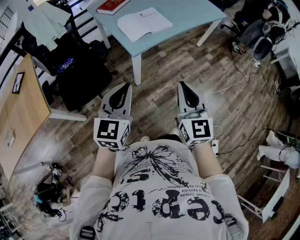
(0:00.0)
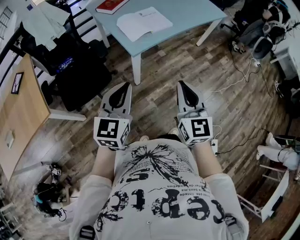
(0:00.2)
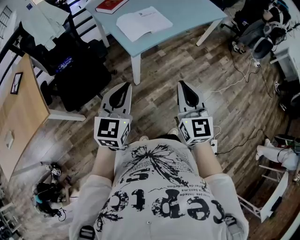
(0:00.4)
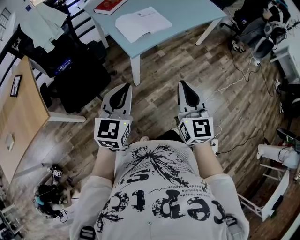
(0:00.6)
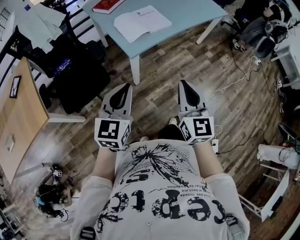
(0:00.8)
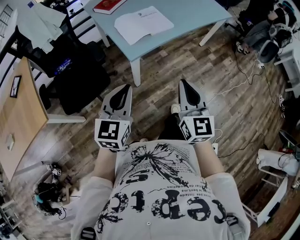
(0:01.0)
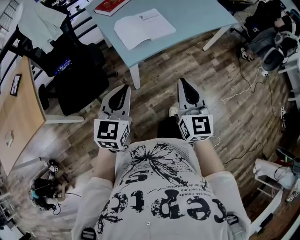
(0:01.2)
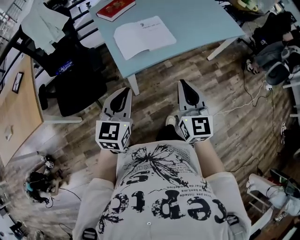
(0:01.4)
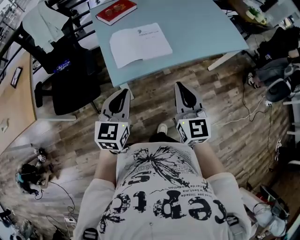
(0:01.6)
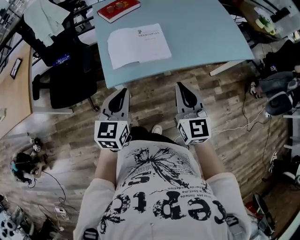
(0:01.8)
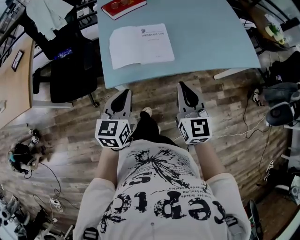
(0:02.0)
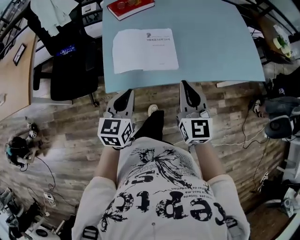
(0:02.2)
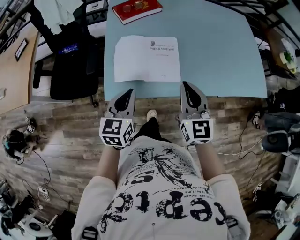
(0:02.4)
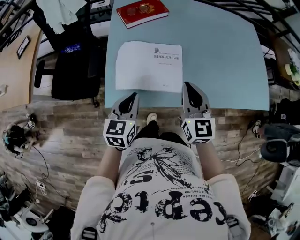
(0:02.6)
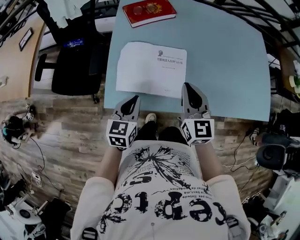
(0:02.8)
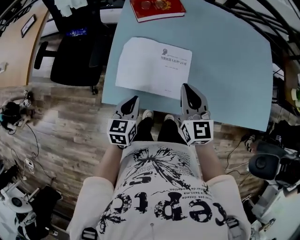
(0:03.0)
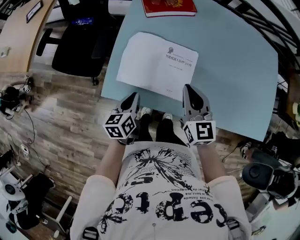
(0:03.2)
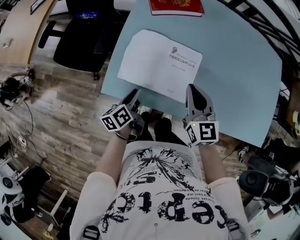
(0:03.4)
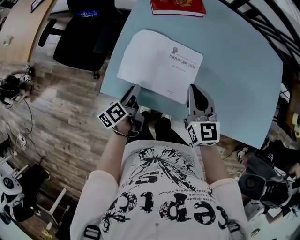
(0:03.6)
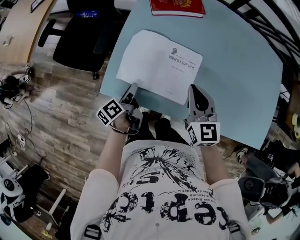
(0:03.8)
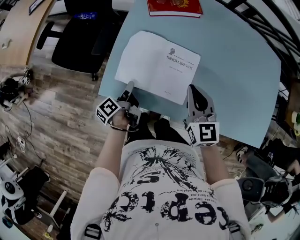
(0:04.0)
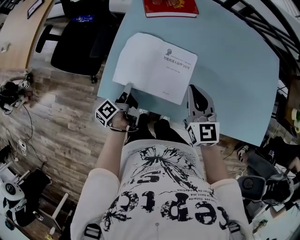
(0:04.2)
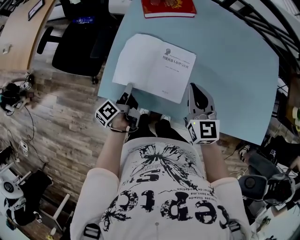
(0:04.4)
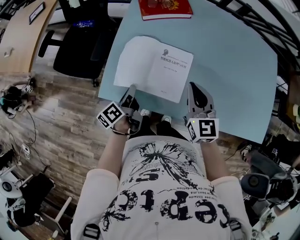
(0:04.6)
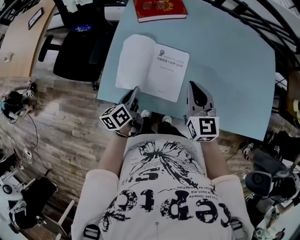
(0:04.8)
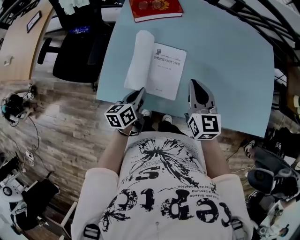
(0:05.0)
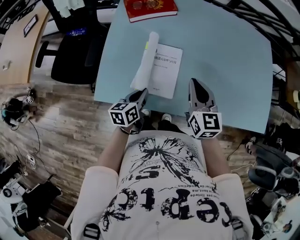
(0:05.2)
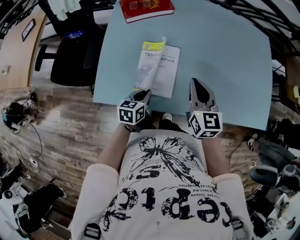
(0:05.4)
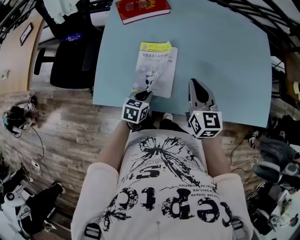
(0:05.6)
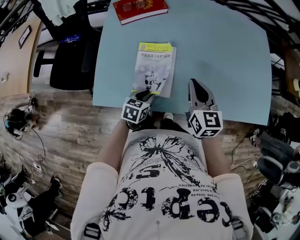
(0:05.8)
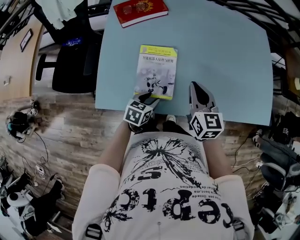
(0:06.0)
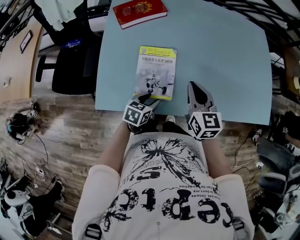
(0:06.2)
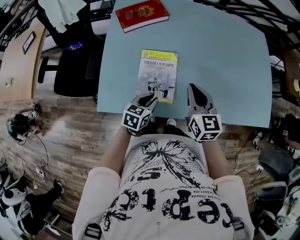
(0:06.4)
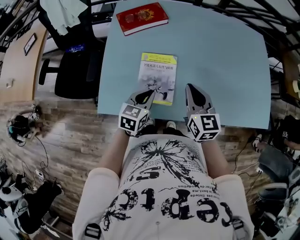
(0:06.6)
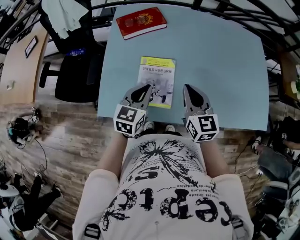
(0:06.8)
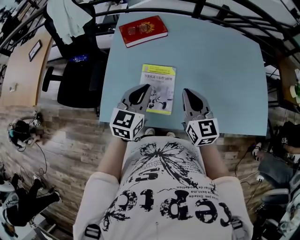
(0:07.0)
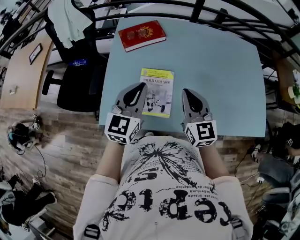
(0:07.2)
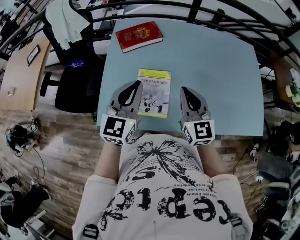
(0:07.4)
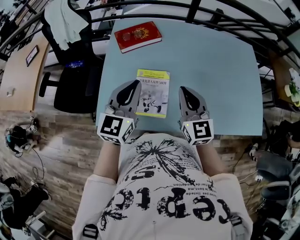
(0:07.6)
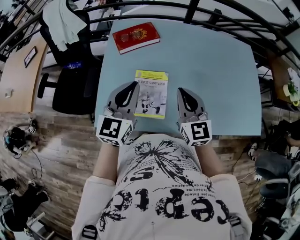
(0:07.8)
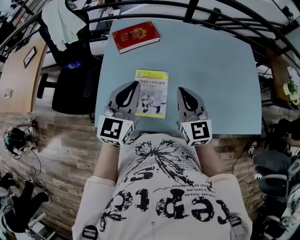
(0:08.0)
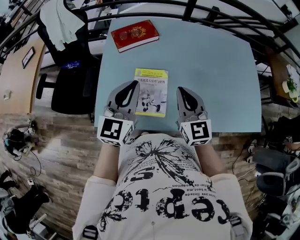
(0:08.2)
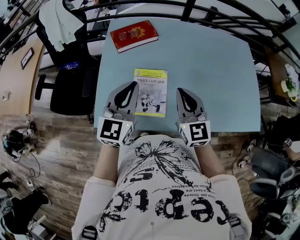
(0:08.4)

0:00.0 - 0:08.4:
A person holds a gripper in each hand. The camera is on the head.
0:00.0 - 0:01.4: The grippers both shift forward and to the right by approximately 20 cm.
0:01.4 - 0:02.8: The right gripper ends up some 40 cm from where it was, and rotates some 30 degrees. The left gripper ends up roughly 35 cm from where it was, and swivels approximately 30 degrees.
0:02.8 - 0:04.2: The left gripper shifts roughly 10 cm downward, twists approximately 80 degrees counterclockwise, seen from behind, and opens, then closes once more; the right gripper changes place by roughly 5 cm.
0:04.2 - 0:05.6: The right gripper shifts roughly 10 cm to the right. Meanwhile the left gripper moves to the right, about 15 cm, and rotates around the line of its fingers by approximately 70 degrees, clockwise from behind.
0:05.6 - 0:07.0: The left gripper moves upward, about 20 cm, swivels about 30 degrees, and opens, then closes once more; the right gripper heads upward, covering approximately 5 cm.
0:07.0 - 0:08.4: The left gripper is displaced upward by roughly 5 cm.

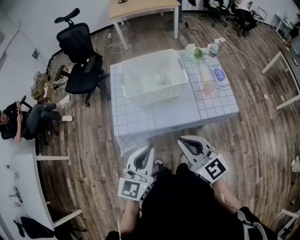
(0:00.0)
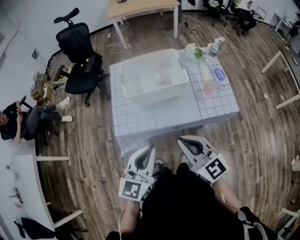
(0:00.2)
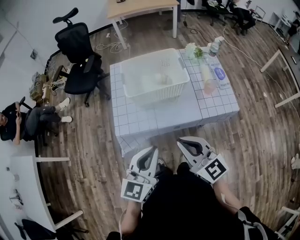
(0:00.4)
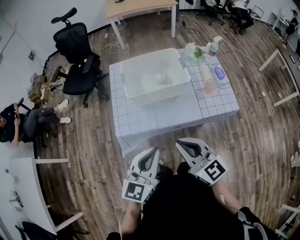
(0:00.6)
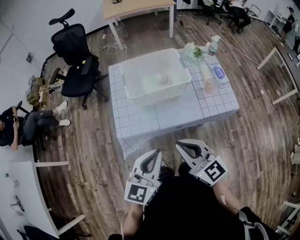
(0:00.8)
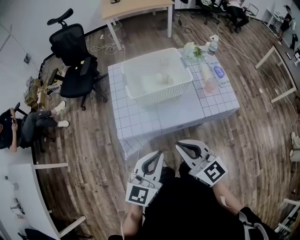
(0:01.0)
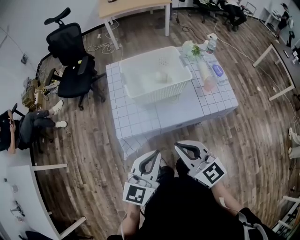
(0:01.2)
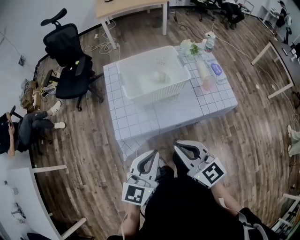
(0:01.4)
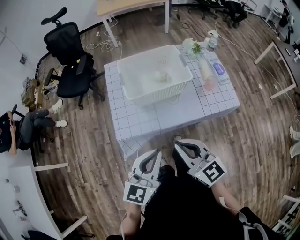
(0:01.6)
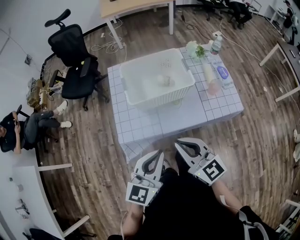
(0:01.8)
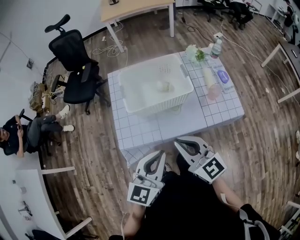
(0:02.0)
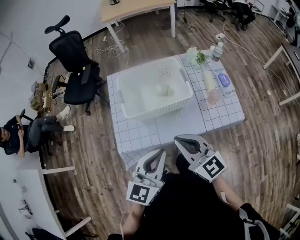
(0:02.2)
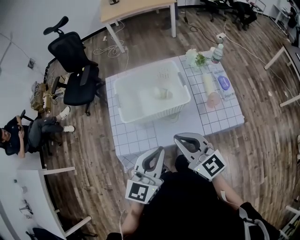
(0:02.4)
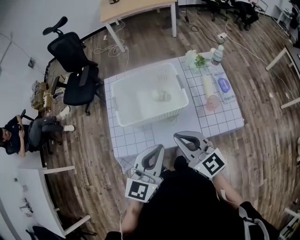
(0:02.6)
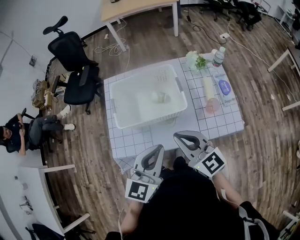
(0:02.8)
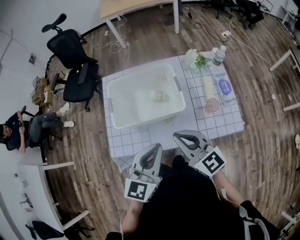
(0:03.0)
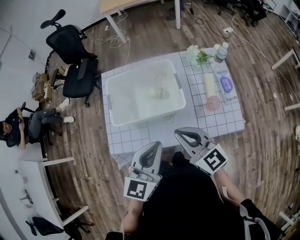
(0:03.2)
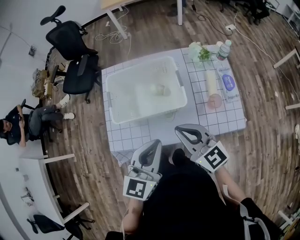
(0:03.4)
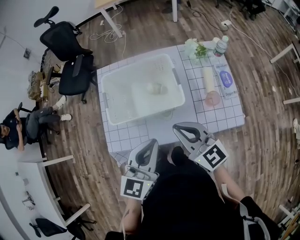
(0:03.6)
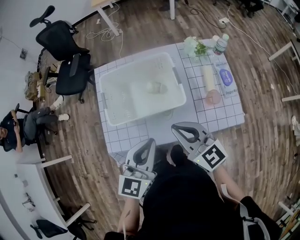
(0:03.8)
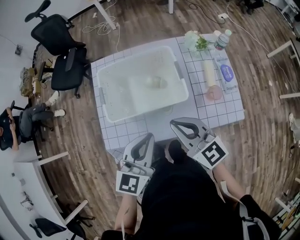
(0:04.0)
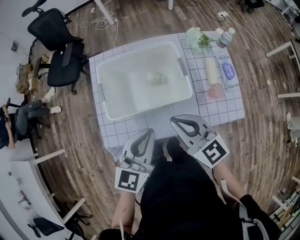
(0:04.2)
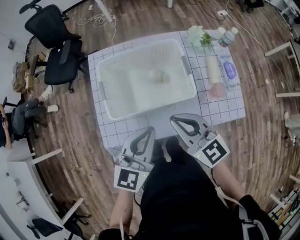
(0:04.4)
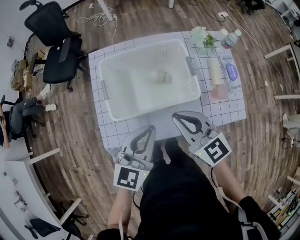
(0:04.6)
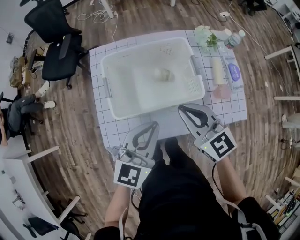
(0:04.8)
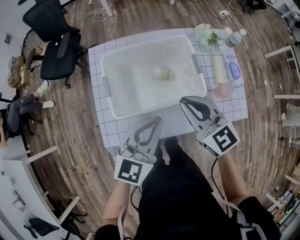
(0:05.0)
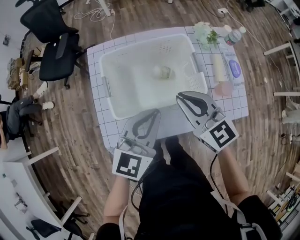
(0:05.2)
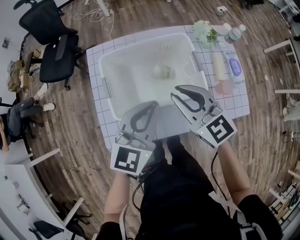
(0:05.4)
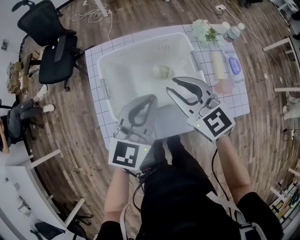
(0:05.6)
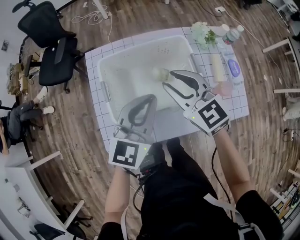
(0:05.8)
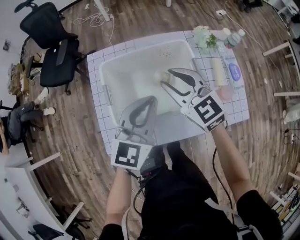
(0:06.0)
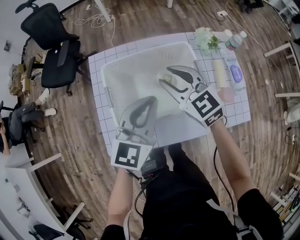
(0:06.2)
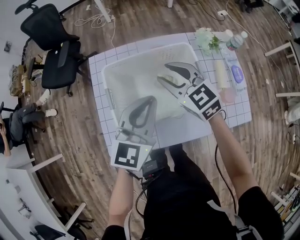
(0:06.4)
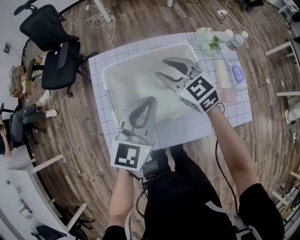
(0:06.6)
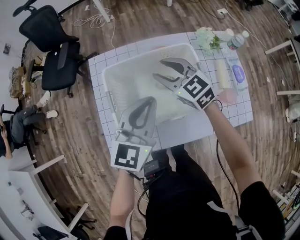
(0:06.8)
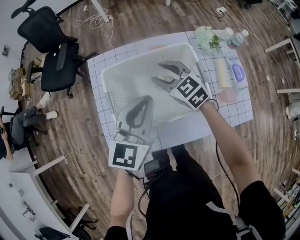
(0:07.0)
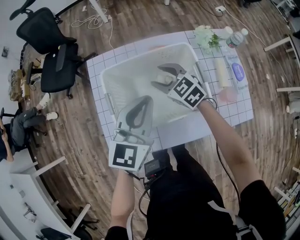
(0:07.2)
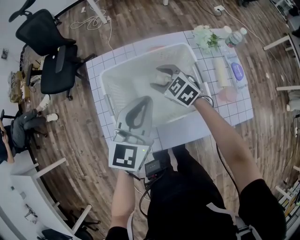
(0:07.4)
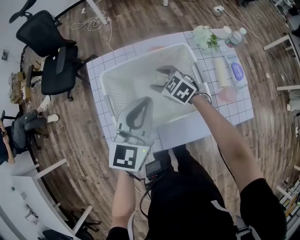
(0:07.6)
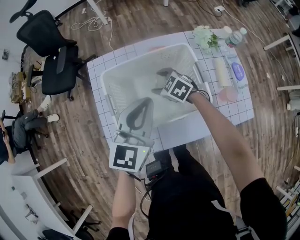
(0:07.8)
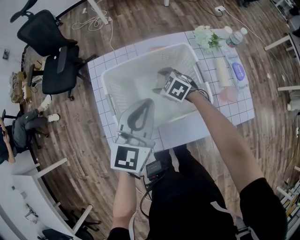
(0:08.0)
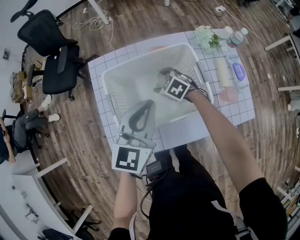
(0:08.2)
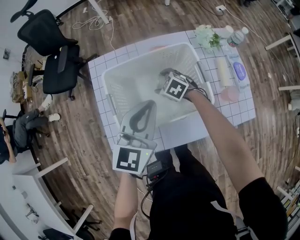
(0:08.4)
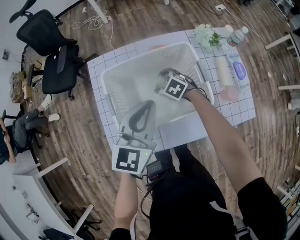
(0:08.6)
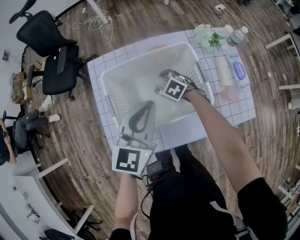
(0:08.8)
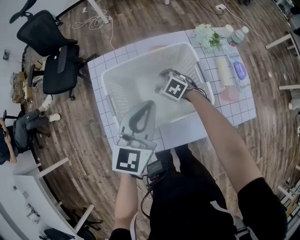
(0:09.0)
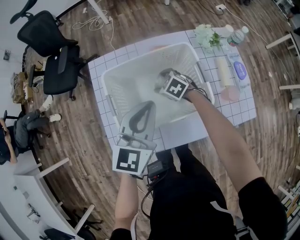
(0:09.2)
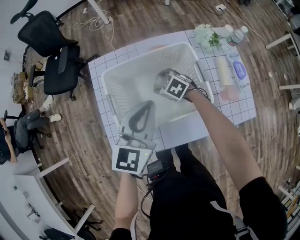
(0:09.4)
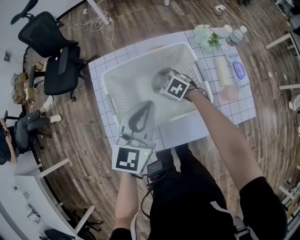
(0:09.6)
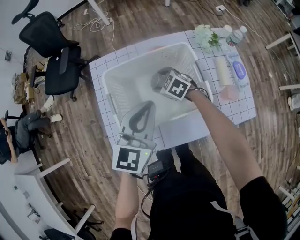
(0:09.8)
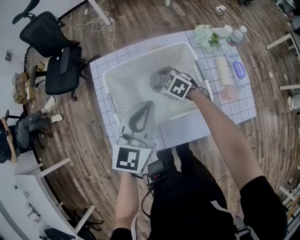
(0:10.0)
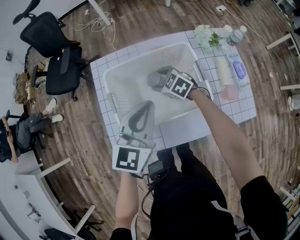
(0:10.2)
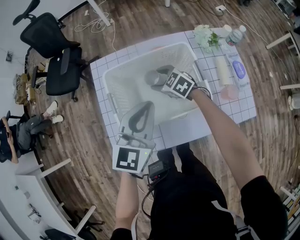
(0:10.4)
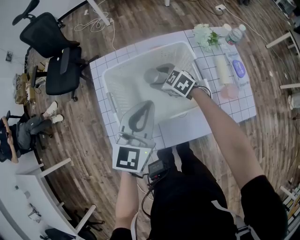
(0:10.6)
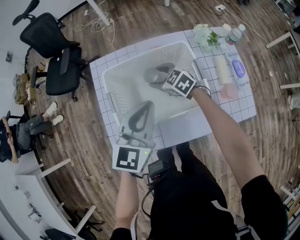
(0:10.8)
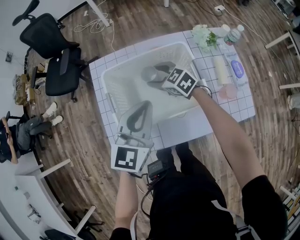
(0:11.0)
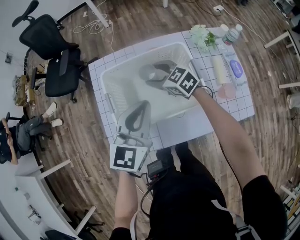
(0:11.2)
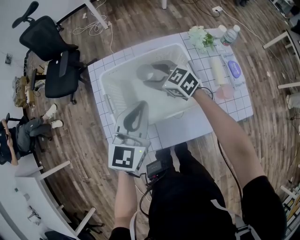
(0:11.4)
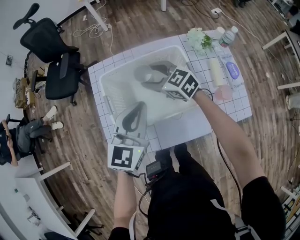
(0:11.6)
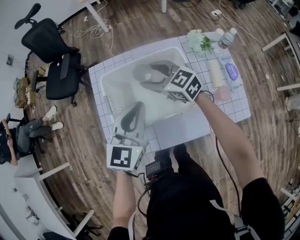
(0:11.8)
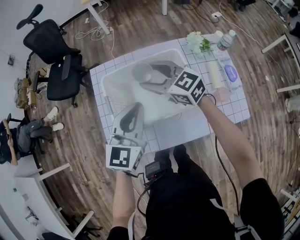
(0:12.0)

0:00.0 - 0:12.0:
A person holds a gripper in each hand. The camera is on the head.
0:00.0 - 0:01.6: The right gripper heads to the left, covering approximately 5 cm.
0:01.6 - 0:03.0: The two grippers go approximately 20 cm forward and to the right.
0:03.0 - 0:04.4: The right gripper shifts roughly 5 cm forward. The left gripper is displaced forward and downward by roughly 10 cm.
0:04.4 - 0:06.0: Both grippers travel together forward, some 15 cm. The right gripper opens its fingers.
0:06.0 - 0:07.6: The right gripper travels downward and forward by some 20 cm, rotates about 20 degrees, and opens up.
0:07.6 - 0:09.0: The right gripper goes some 5 cm downward.
0:09.0 - 0:10.4: The right gripper moves upward, roughly 5 cm.
0:10.4 - 0:12.0: The right gripper goes some 20 cm upward, and rotates some 30 degrees.

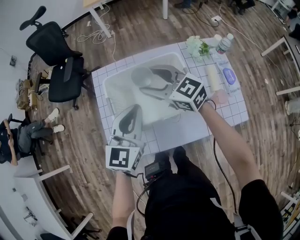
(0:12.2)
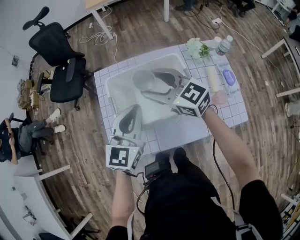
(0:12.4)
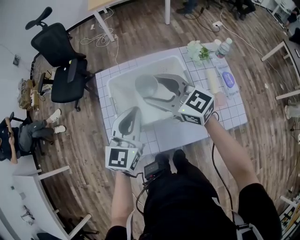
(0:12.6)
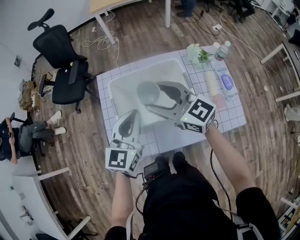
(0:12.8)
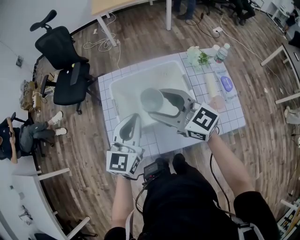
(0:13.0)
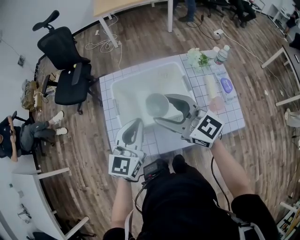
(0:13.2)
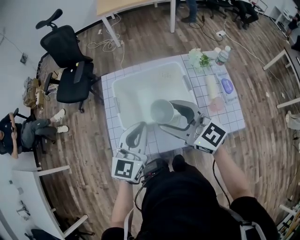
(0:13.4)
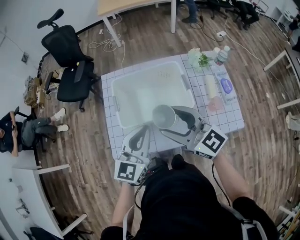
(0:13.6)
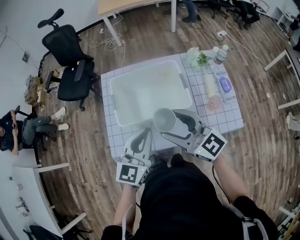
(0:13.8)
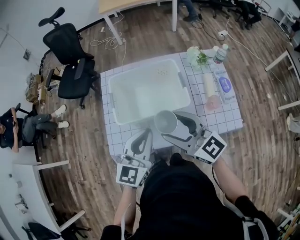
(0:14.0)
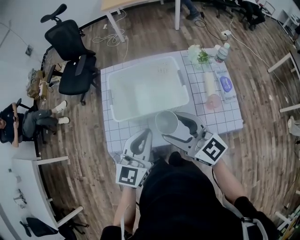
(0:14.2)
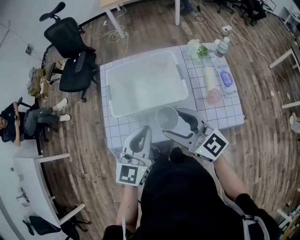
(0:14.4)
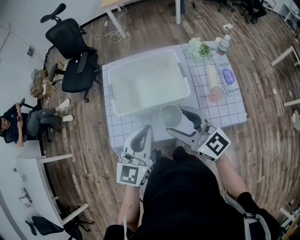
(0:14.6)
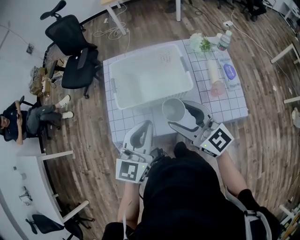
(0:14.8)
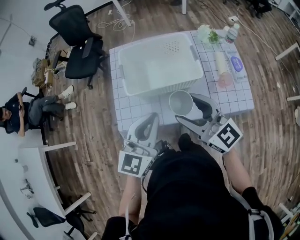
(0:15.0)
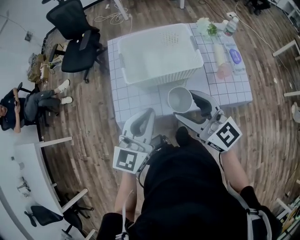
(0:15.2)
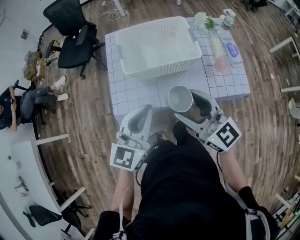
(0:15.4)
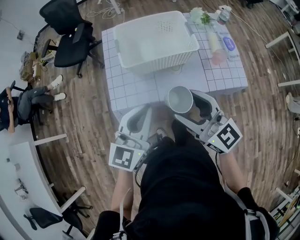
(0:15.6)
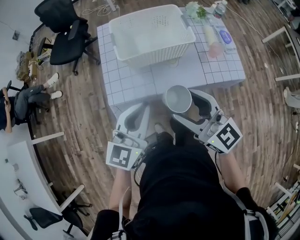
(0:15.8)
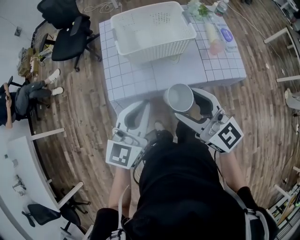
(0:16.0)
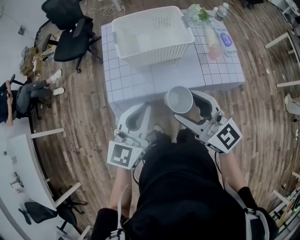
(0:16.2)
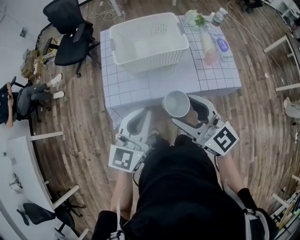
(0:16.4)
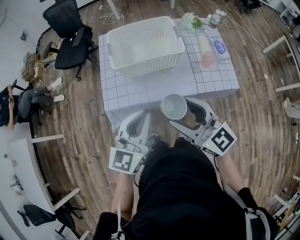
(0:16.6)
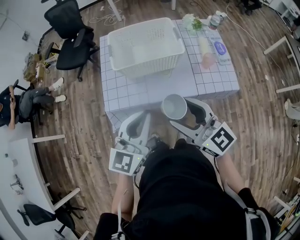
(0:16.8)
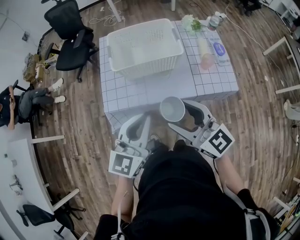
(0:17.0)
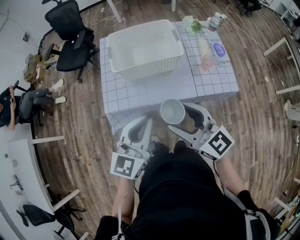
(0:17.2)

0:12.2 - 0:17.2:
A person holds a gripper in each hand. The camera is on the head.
0:12.2 - 0:13.8: The left gripper heads backward, covering approximately 10 cm. Meanwhile the right gripper is displaced backward by roughly 20 cm.
0:13.8 - 0:15.6: The left gripper shifts about 15 cm backward and to the left; the right gripper travels backward by some 15 cm.
0:15.6 - 0:17.2: The right gripper shifts some 5 cm backward, while the left gripper moves backward and to the right, approximately 10 cm.
